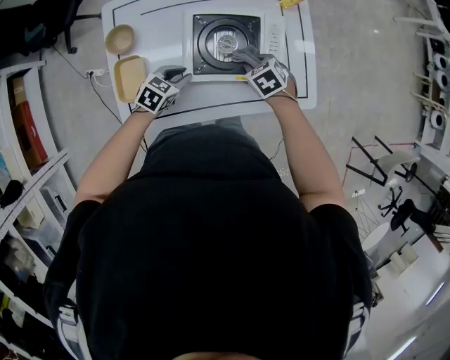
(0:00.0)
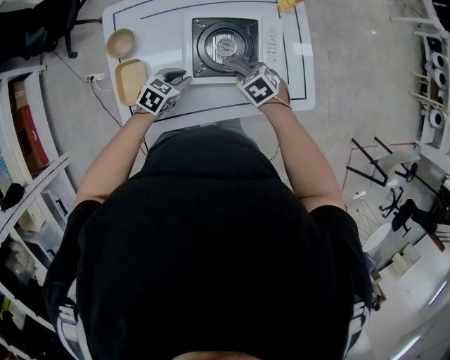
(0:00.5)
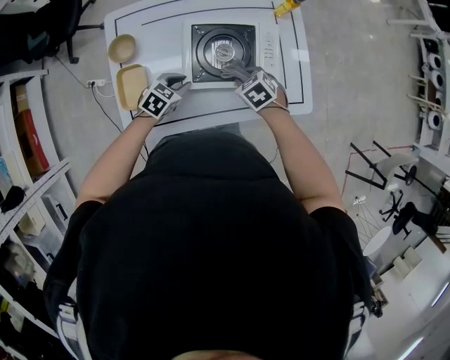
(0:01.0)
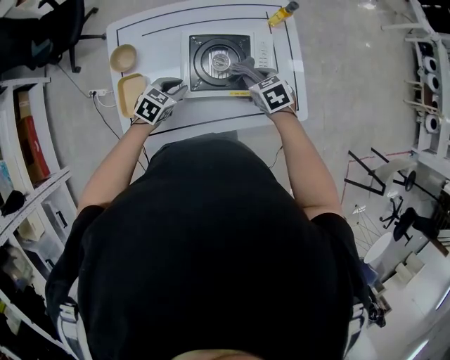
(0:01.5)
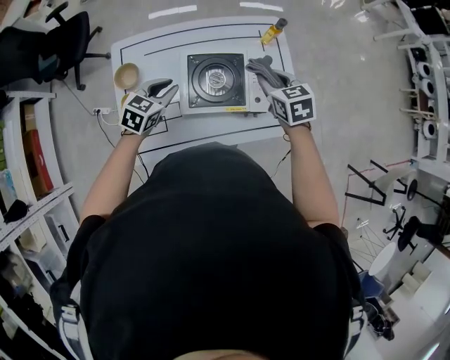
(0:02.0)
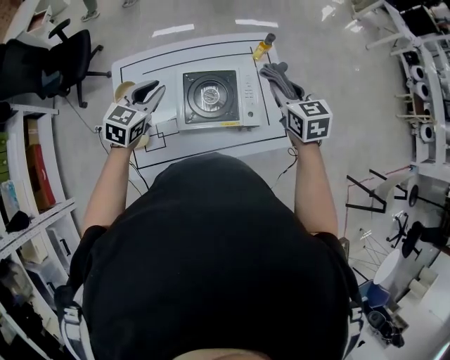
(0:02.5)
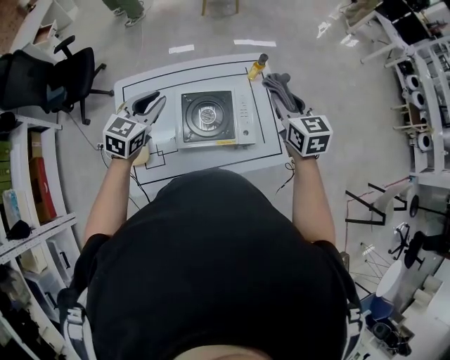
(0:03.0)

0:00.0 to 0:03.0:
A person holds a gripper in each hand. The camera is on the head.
0:00.0 to 0:01.5: The right gripper goes about 5 cm upward.
0:01.5 to 0:03.0: The left gripper goes about 25 cm upward, and turns by roughly 30 degrees. Meanwhile the right gripper heads upward and to the right, covering roughly 30 cm, and tilts its fingers roughly 30 degrees upward.

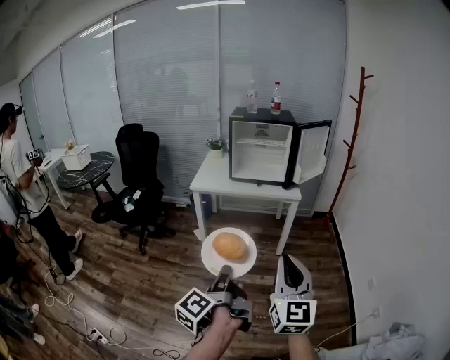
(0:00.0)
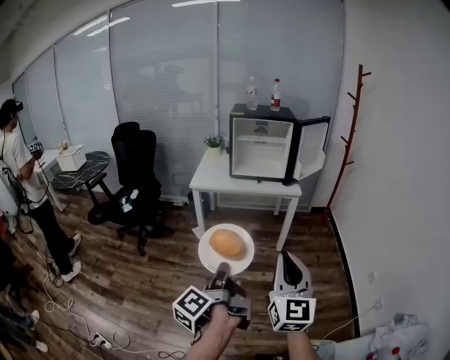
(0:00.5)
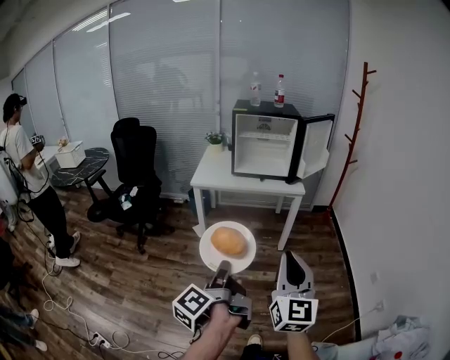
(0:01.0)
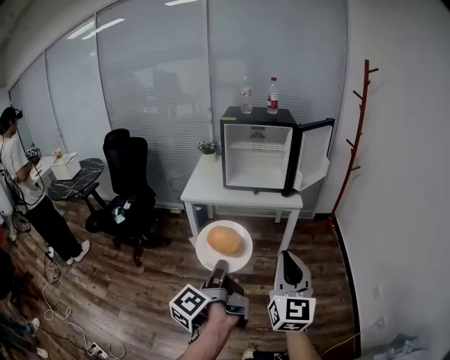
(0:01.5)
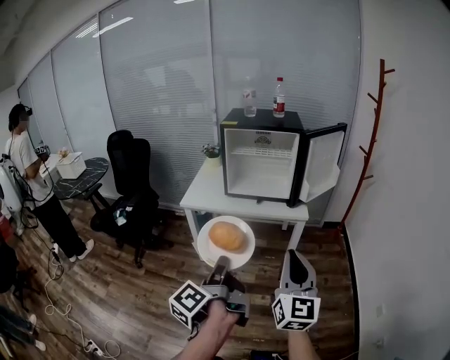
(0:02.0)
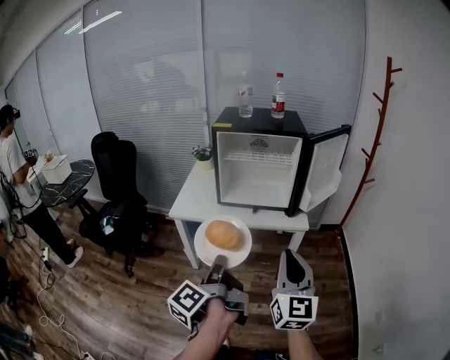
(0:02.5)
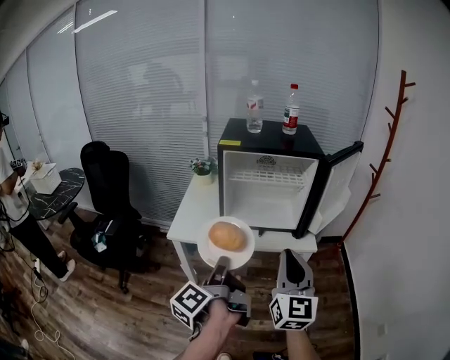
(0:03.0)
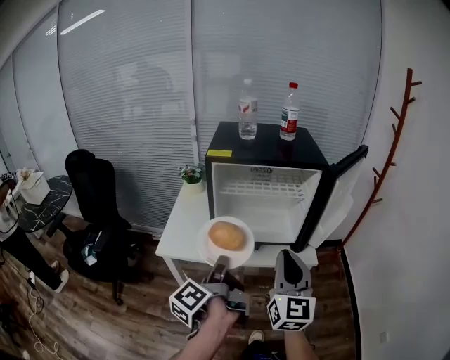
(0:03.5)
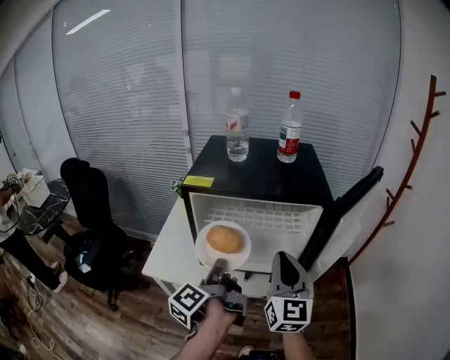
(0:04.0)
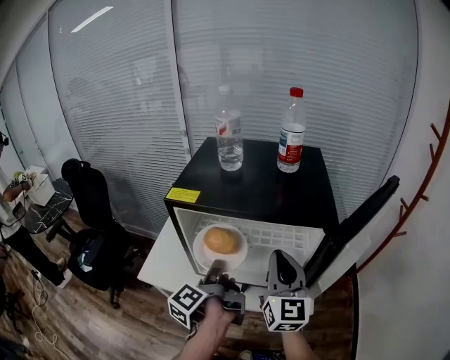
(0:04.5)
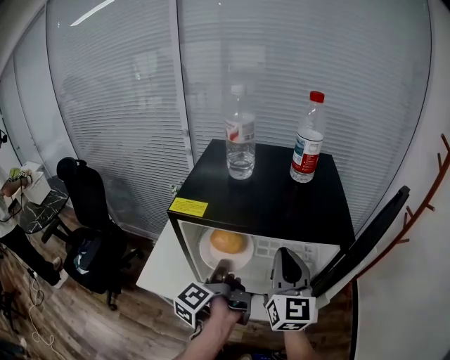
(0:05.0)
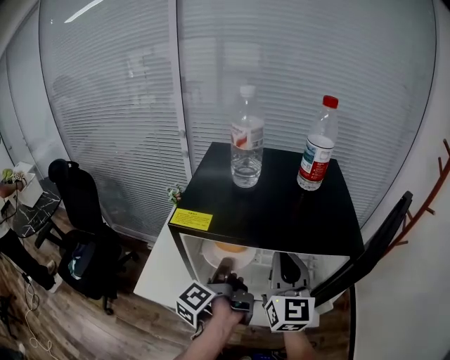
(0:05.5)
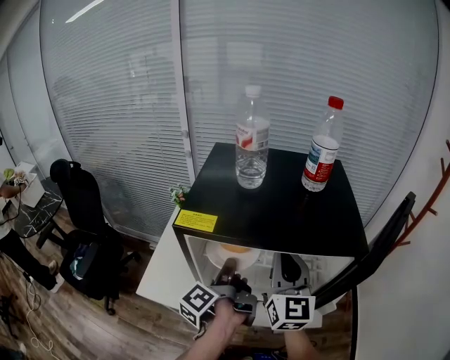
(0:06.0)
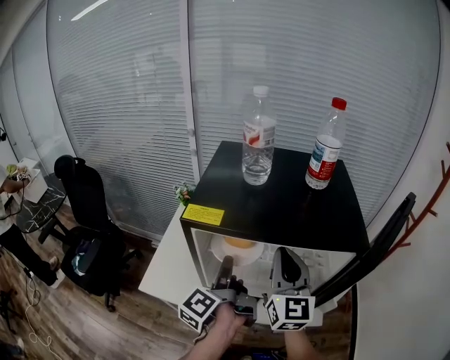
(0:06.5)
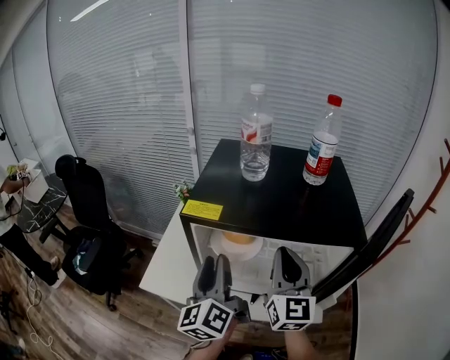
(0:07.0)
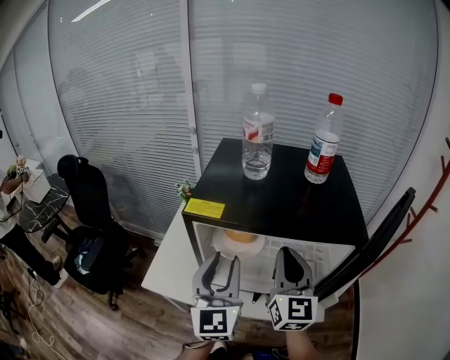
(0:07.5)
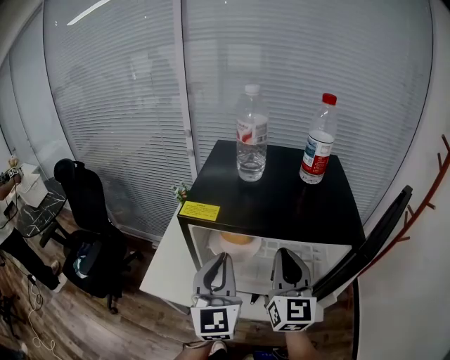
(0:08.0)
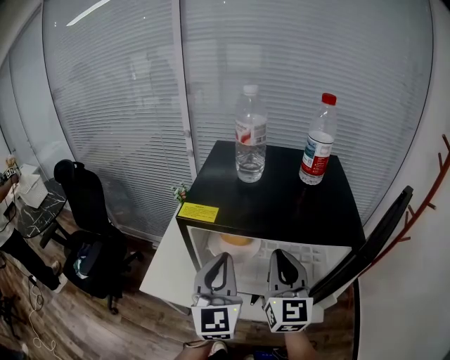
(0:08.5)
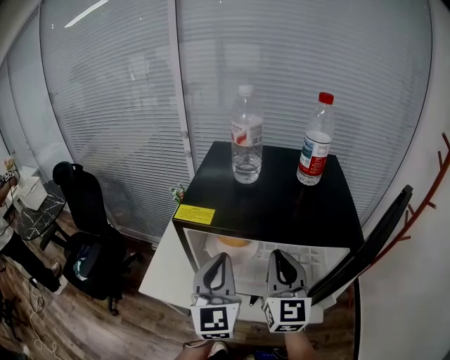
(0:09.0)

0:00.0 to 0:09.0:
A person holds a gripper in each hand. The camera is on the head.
0:00.0 to 0:02.0: The right gripper changes place by some 25 cm.
0:02.0 to 0:04.5: The right gripper changes place by some 60 cm.
0:04.5 to 0:07.0: The right gripper shifts by about 5 cm.

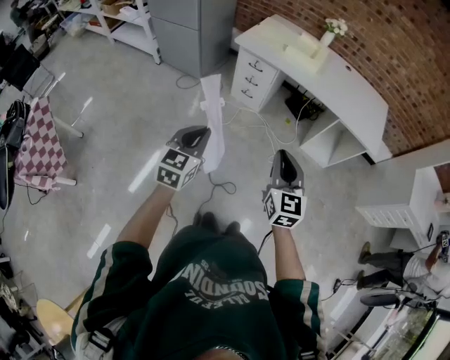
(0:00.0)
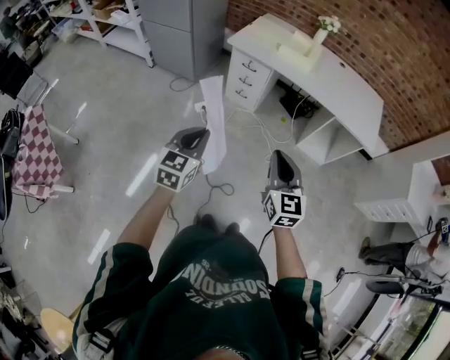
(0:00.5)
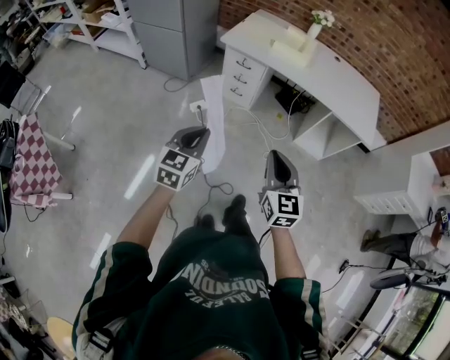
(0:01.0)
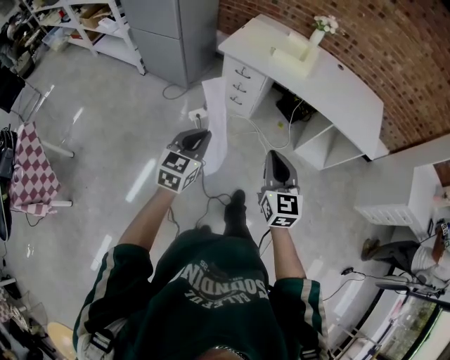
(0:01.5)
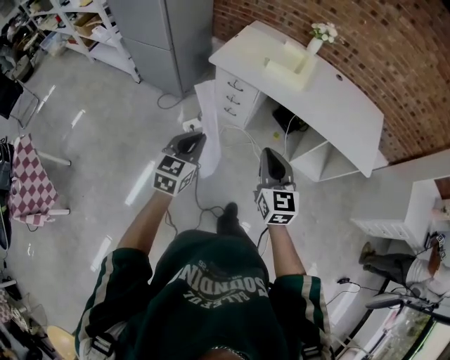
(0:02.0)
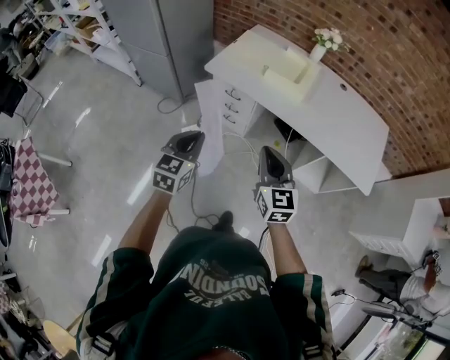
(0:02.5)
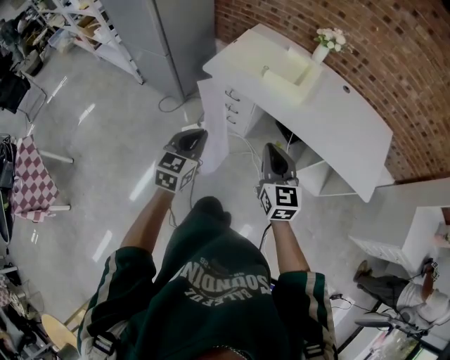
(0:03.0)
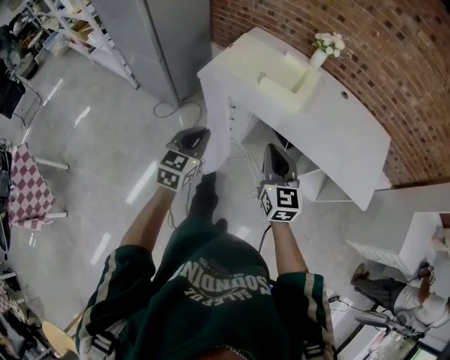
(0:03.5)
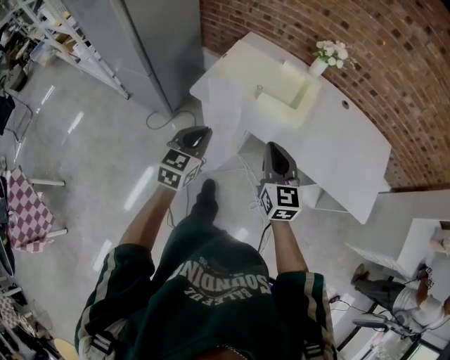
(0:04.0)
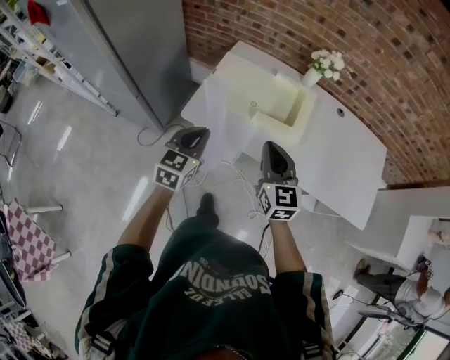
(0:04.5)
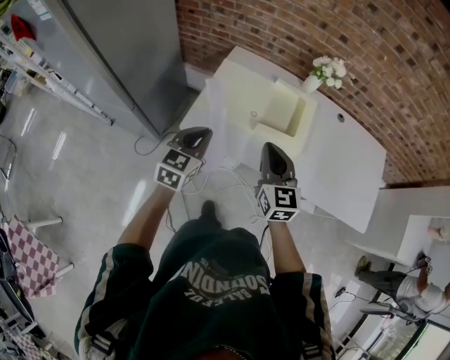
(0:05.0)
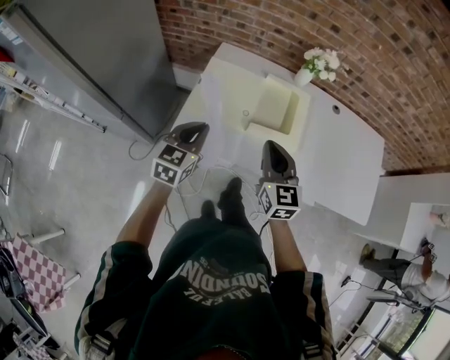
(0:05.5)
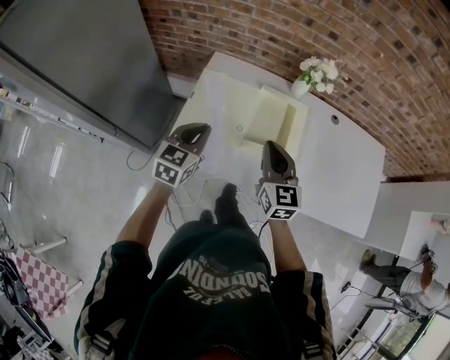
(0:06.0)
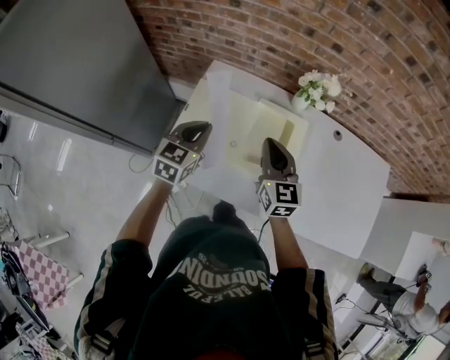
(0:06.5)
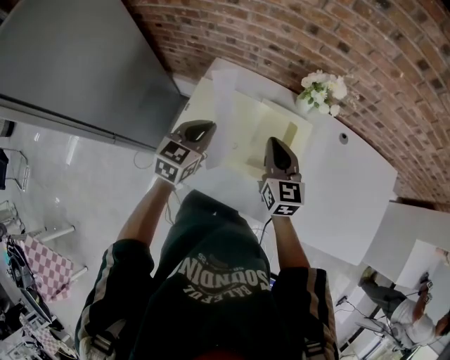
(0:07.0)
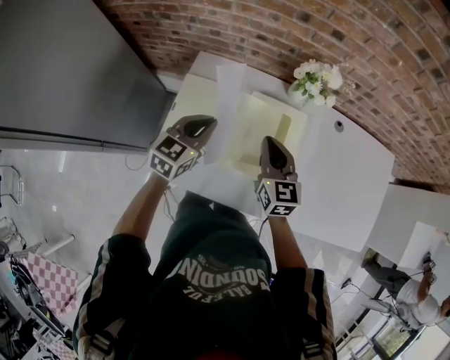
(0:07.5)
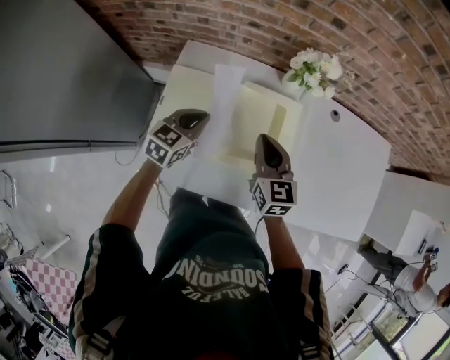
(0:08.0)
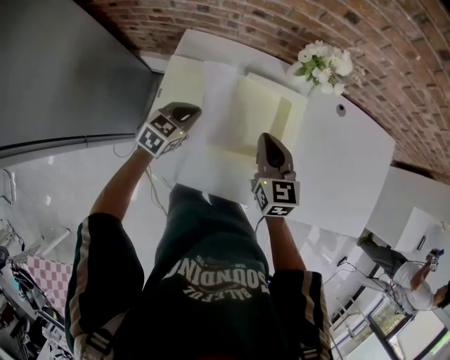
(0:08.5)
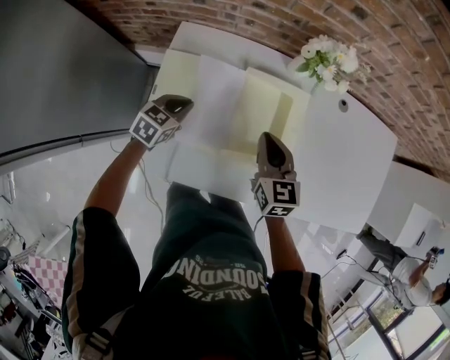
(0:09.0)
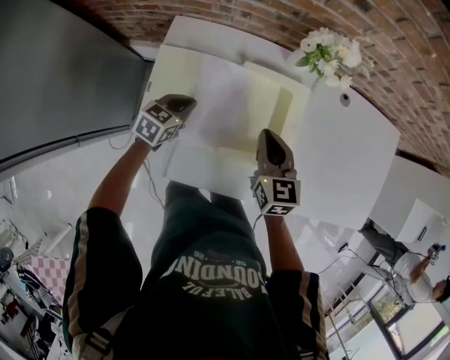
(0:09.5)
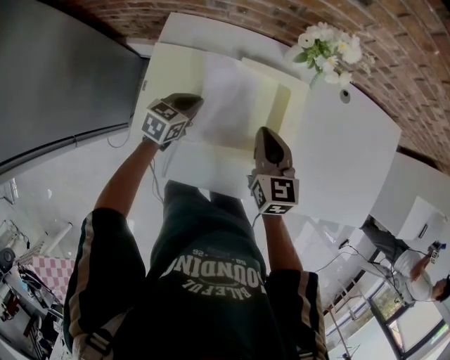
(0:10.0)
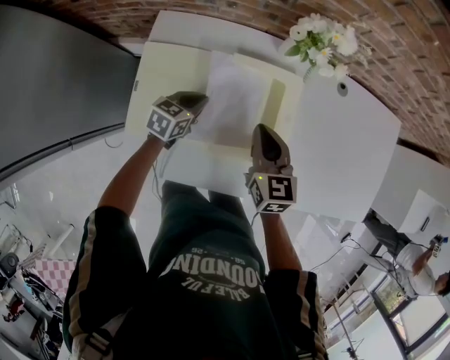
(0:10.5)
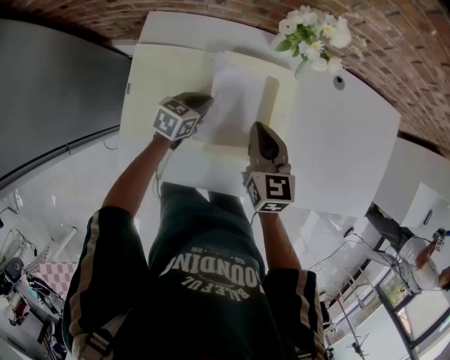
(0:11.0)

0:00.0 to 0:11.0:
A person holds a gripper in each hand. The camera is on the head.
0:00.0 to 0:02.0: The grippers both shift forward by some 25 cm.
0:02.0 to 0:03.5: Both grippers move forward and to the right, about 20 cm.
0:03.5 to 0:05.5: The two grippers go approximately 35 cm forward.
0:05.5 to 0:07.5: Both grippers travel together forward, roughly 25 cm.
0:07.5 to 0:09.0: The left gripper is displaced downward by roughly 15 cm, and changes its angle by approximately 20 degrees; the right gripper travels downward by roughly 5 cm.
0:09.0 to 0:11.0: The left gripper shifts roughly 15 cm to the right and downward.

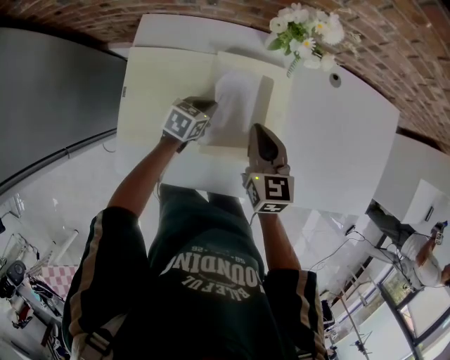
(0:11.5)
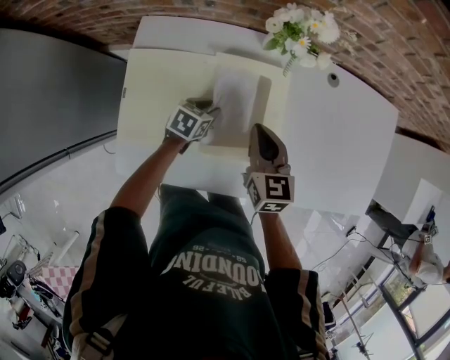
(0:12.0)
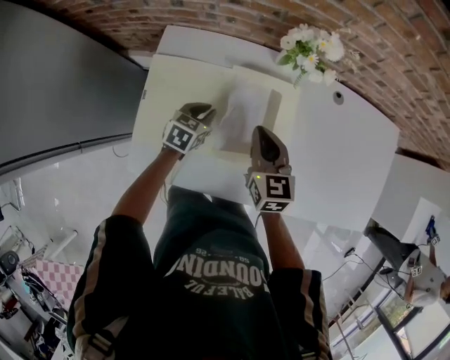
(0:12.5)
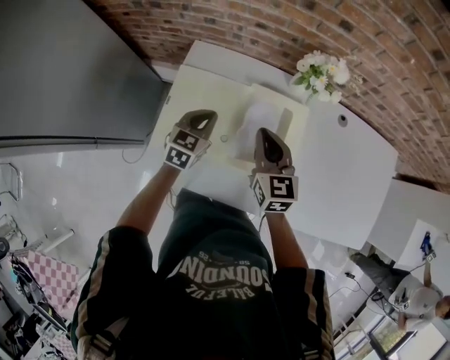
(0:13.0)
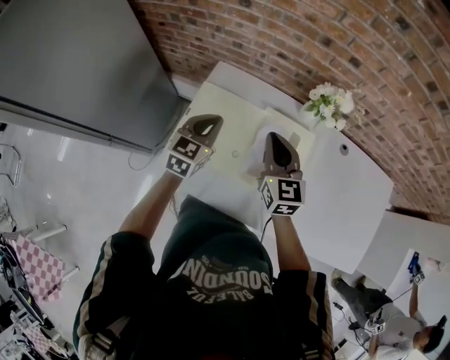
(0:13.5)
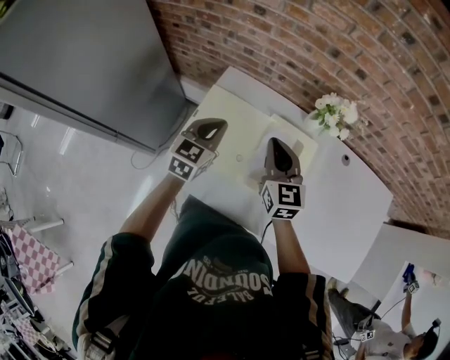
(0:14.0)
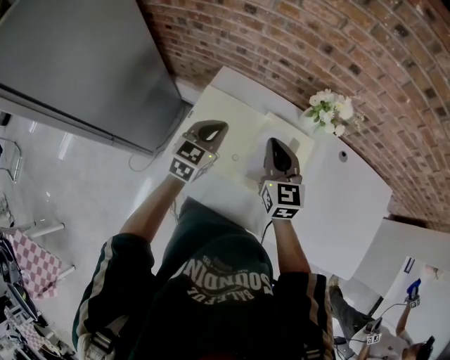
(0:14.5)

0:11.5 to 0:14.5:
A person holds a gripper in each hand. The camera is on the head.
0:11.5 to 0:13.0: The left gripper moves upward and to the left, some 20 cm, rotates about 30 degrees, and opens and closes again; the right gripper travels upward and to the left by about 10 cm.
0:13.0 to 0:14.5: The left gripper is displaced upward by roughly 10 cm. The right gripper shifts approximately 5 cm upward.
